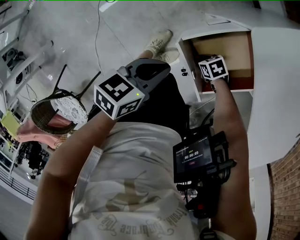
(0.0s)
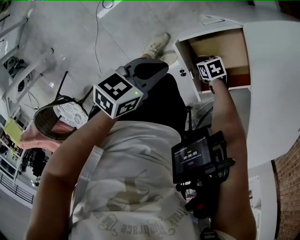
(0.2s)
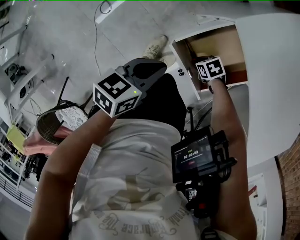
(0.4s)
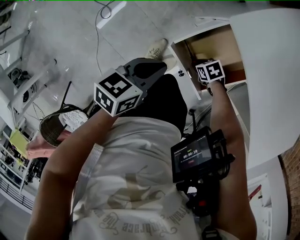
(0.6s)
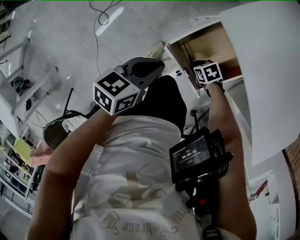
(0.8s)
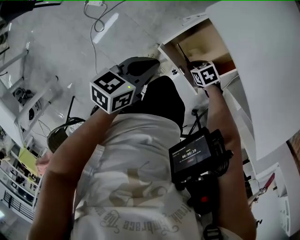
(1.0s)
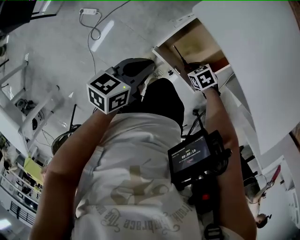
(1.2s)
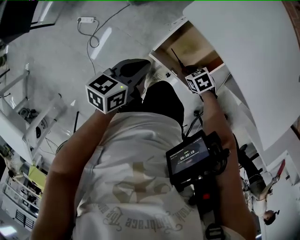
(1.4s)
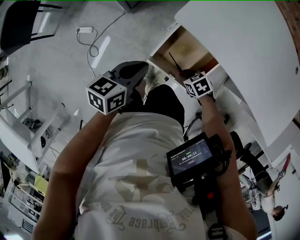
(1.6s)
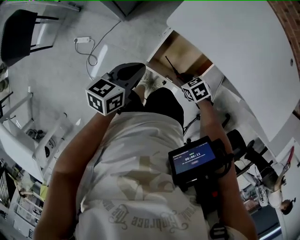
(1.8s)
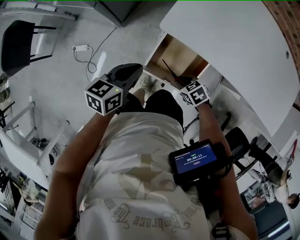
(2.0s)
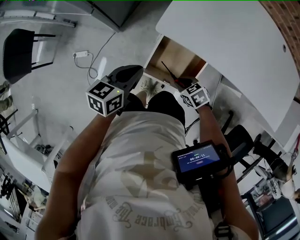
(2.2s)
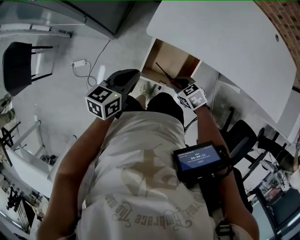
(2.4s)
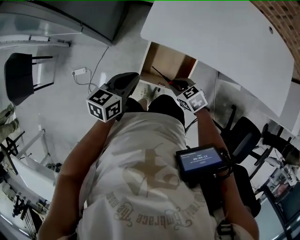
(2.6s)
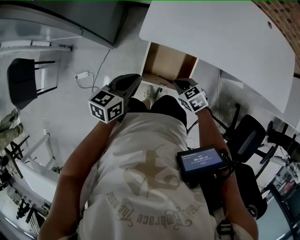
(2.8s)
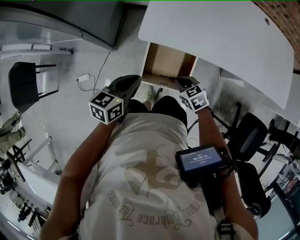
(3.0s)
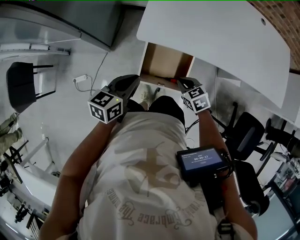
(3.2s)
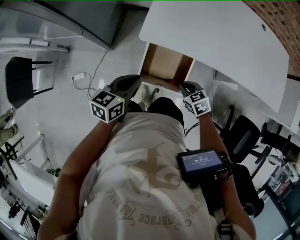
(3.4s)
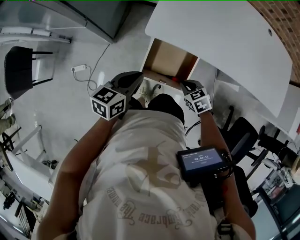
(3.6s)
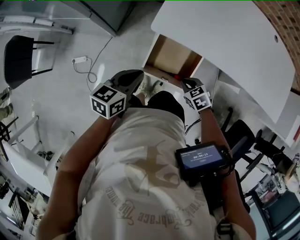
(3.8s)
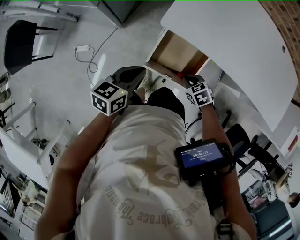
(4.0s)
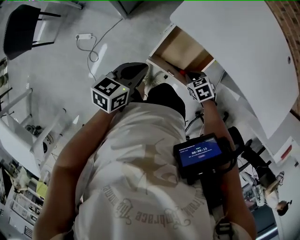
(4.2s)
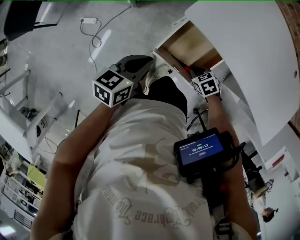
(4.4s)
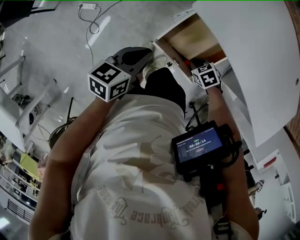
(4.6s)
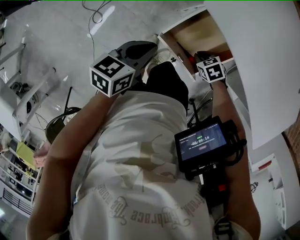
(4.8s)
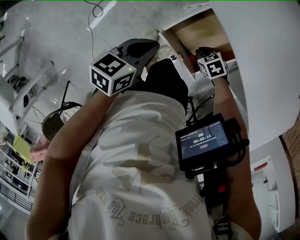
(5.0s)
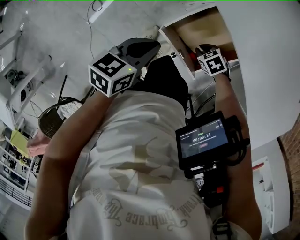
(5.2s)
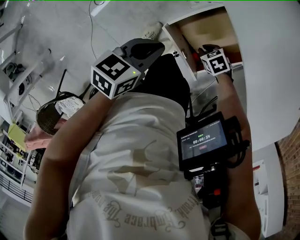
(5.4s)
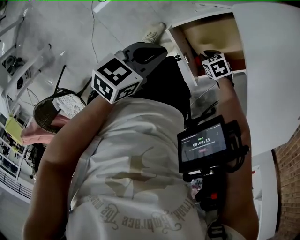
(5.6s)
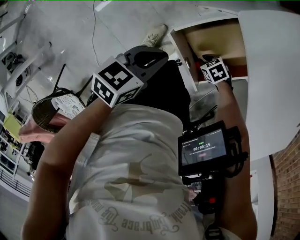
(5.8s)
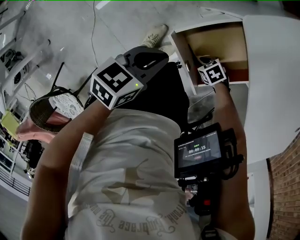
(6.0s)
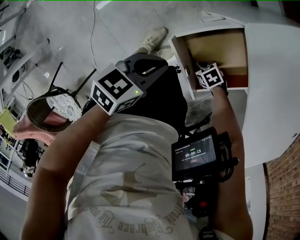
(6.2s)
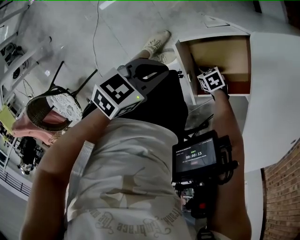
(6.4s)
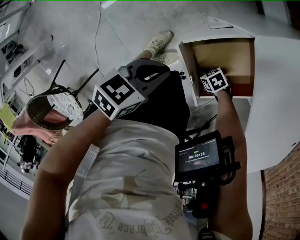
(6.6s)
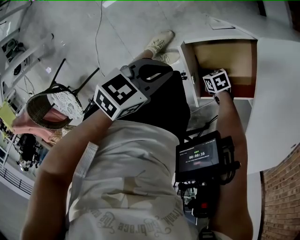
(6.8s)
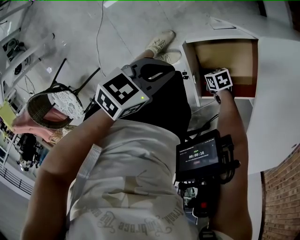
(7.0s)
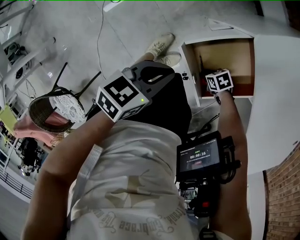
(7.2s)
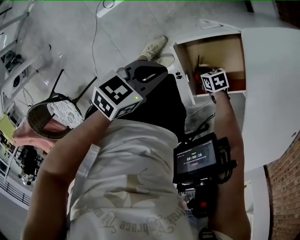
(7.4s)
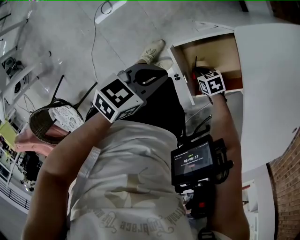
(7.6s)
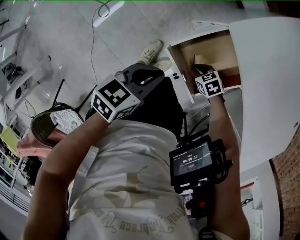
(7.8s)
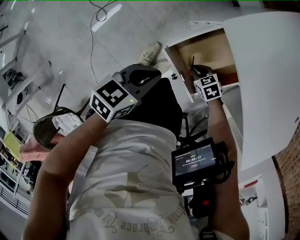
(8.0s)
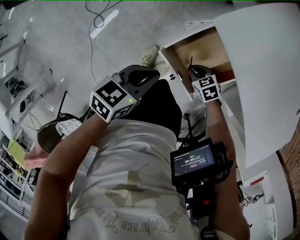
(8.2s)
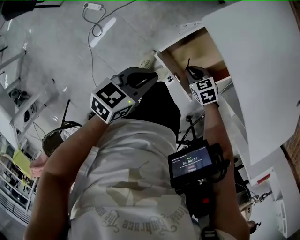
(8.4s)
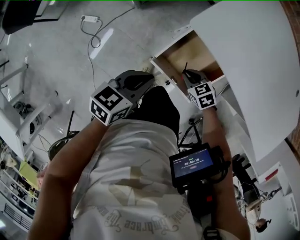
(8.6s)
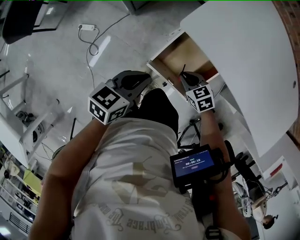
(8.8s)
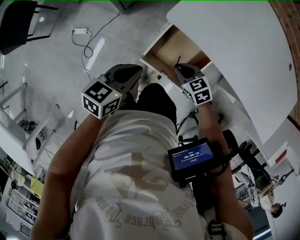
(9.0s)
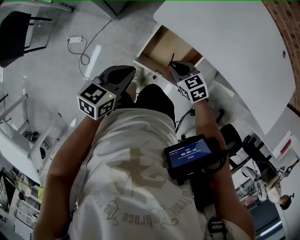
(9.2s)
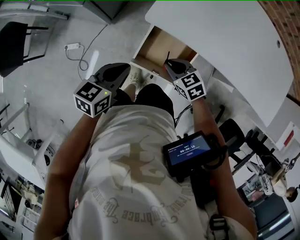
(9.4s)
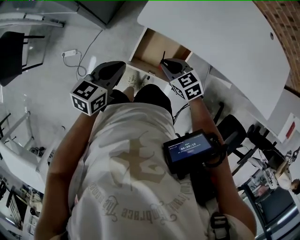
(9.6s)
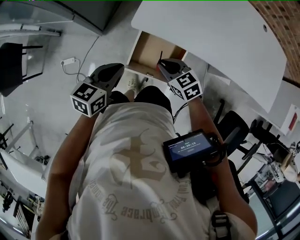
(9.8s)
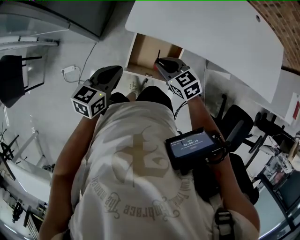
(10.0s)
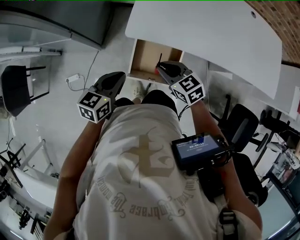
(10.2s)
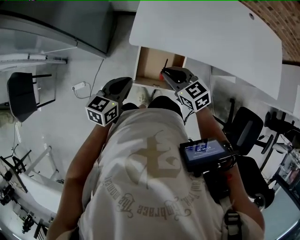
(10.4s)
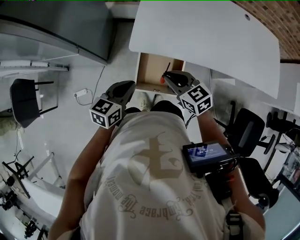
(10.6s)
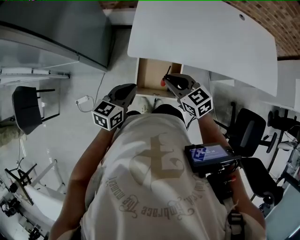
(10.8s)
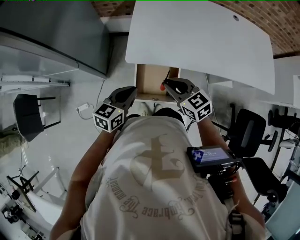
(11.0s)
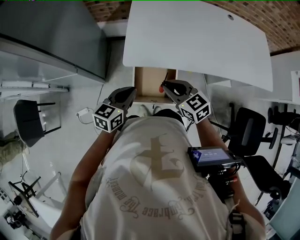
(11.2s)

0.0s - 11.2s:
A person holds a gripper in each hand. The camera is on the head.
0.0s - 1.6s: The left gripper heads upward, covering about 5 cm; the right gripper heads upward, covering roughly 15 cm, and rotates some 30 degrees.
1.6s - 3.2s: The right gripper heads upward, covering approximately 10 cm, and changes its angle by approximately 30 degrees; the left gripper is displaced upward by some 5 cm.
3.2s - 4.8s: The left gripper changes place by roughly 10 cm, and turns by roughly 20 degrees. The right gripper travels downward by approximately 10 cm, and turns by some 40 degrees.
4.8s - 6.4s: The right gripper goes some 20 cm downward, and turns by roughly 30 degrees. The left gripper travels downward by about 10 cm.
6.4s - 8.0s: The left gripper shifts about 10 cm upward. The right gripper travels upward by roughly 10 cm, and rotates roughly 30 degrees.
8.0s - 9.6s: The left gripper moves upward, roughly 10 cm; the right gripper shifts some 20 cm upward, and changes its angle by roughly 40 degrees.
9.6s - 11.2s: The left gripper shifts some 5 cm to the right, while the right gripper travels upward by roughly 15 cm, and turns by roughly 30 degrees.

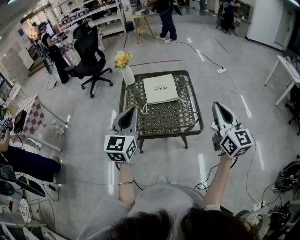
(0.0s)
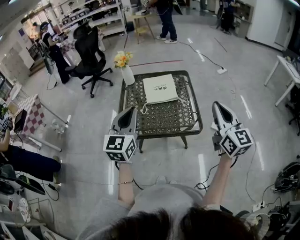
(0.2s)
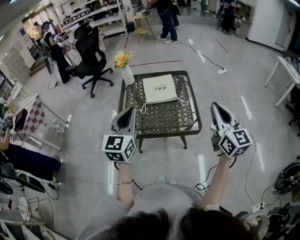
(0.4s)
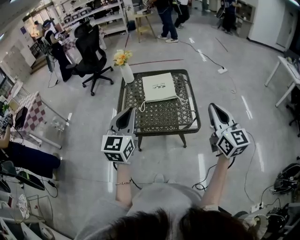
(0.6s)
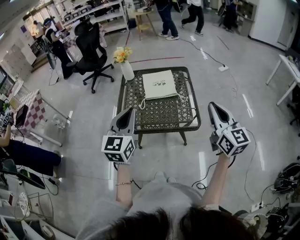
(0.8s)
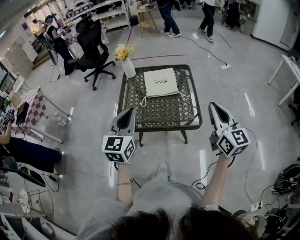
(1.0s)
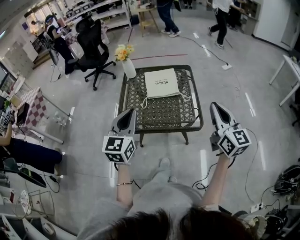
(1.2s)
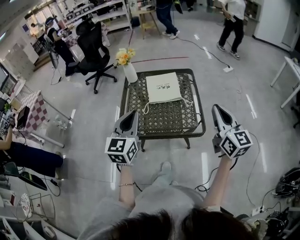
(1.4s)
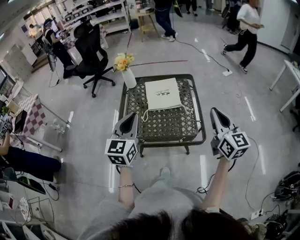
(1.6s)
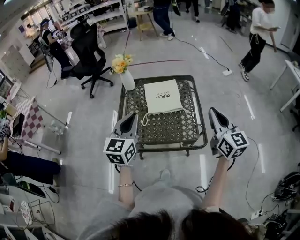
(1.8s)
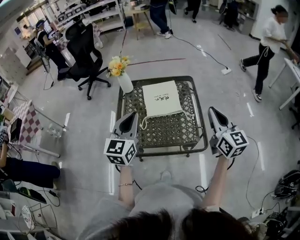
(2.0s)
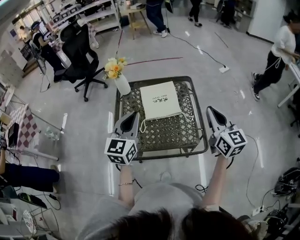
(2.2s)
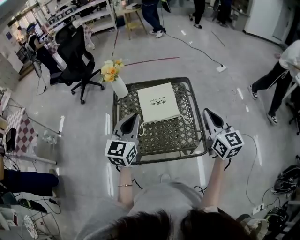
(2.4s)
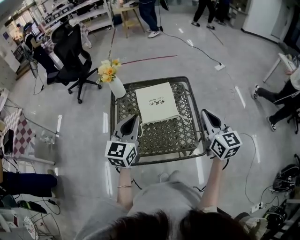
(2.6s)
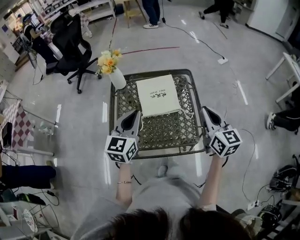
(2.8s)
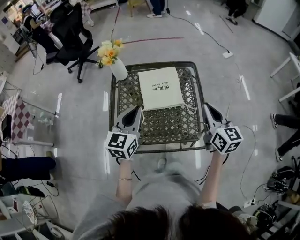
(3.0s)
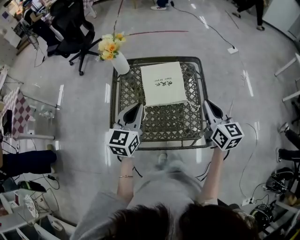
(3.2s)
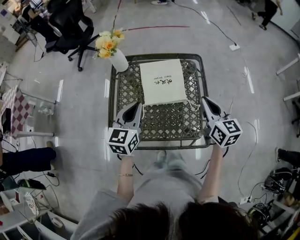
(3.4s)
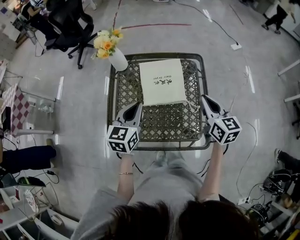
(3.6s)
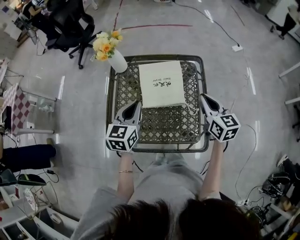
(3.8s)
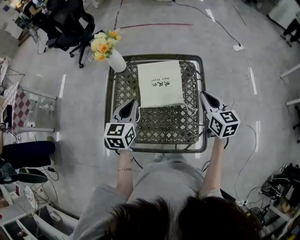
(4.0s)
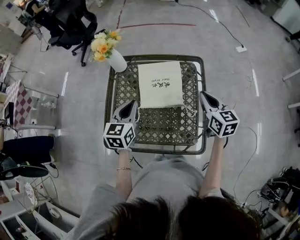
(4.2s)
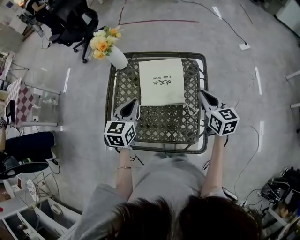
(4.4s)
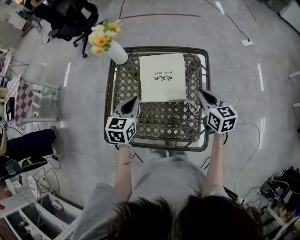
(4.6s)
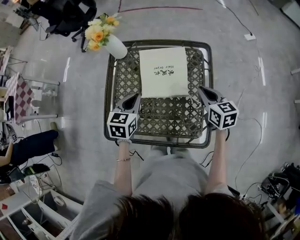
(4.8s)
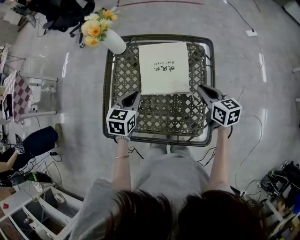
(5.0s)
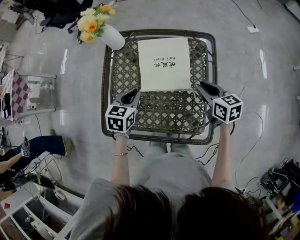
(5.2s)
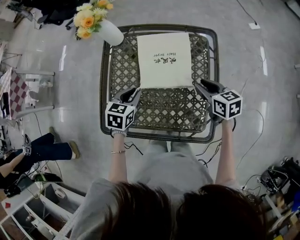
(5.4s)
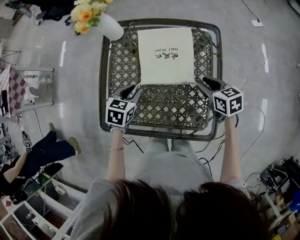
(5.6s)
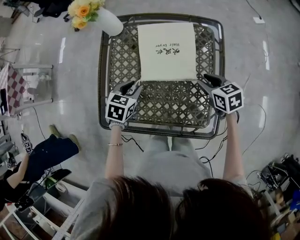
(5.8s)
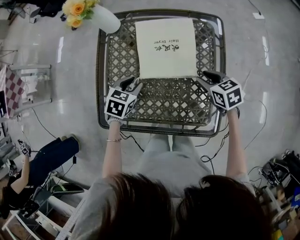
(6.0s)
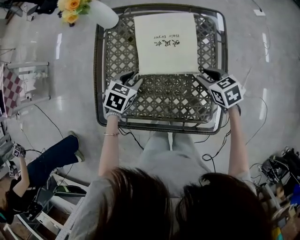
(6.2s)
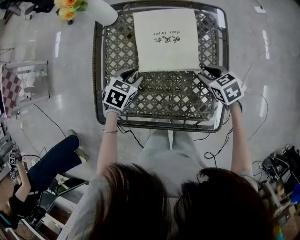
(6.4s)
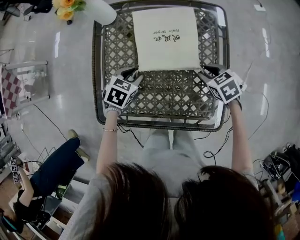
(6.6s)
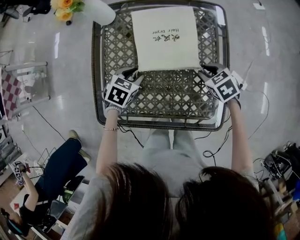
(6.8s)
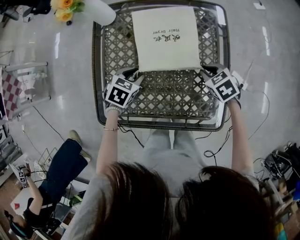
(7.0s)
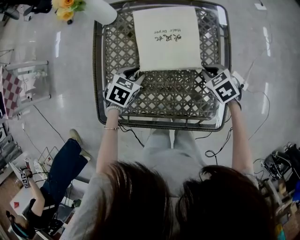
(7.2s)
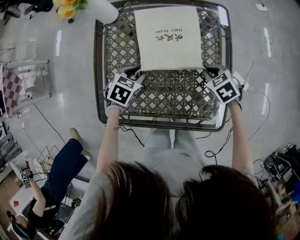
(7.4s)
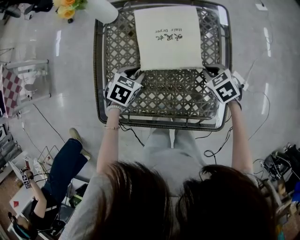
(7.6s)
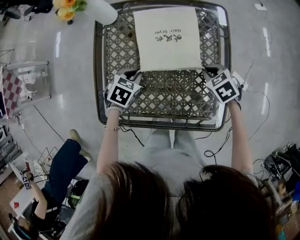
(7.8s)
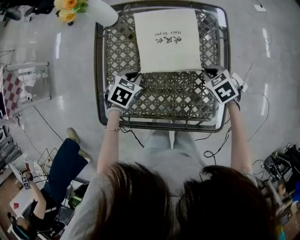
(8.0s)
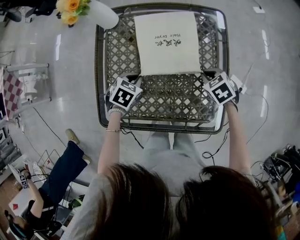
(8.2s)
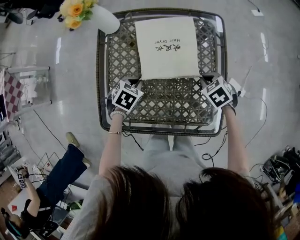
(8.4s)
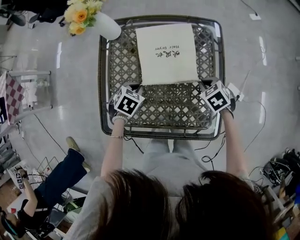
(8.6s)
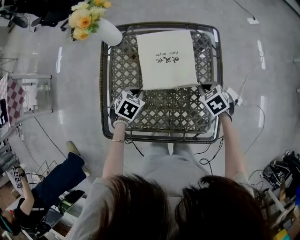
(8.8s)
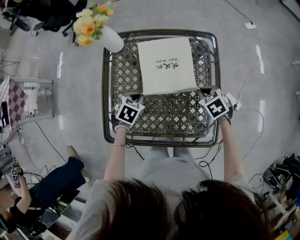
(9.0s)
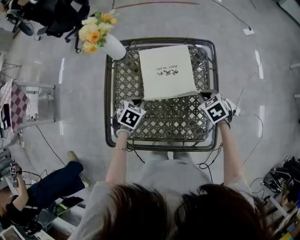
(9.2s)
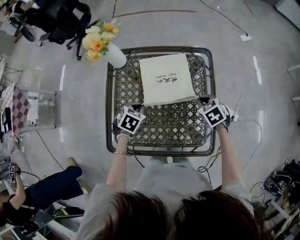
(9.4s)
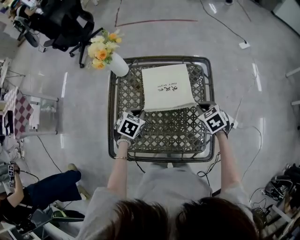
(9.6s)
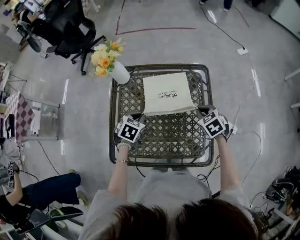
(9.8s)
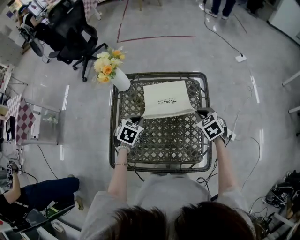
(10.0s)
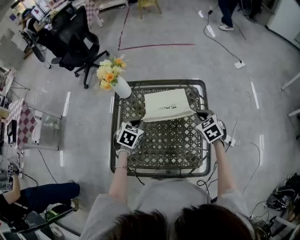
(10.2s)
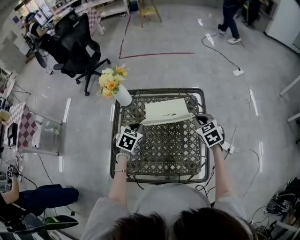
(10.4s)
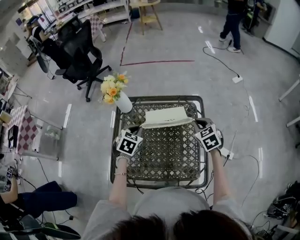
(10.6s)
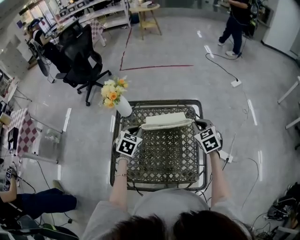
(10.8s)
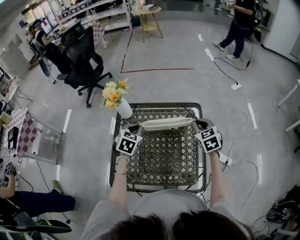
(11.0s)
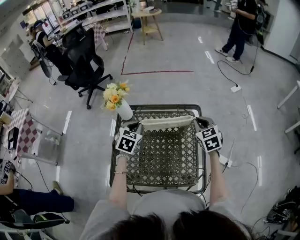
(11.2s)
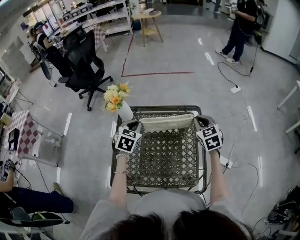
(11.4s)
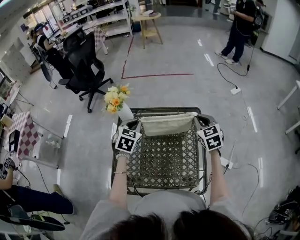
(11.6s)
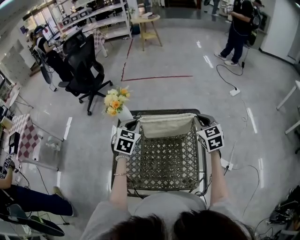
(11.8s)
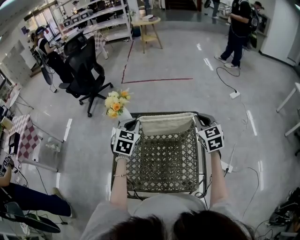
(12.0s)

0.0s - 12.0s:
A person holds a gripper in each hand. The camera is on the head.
0.0s - 1.6s: The two grippers go approximately 5 cm forward.
1.6s - 3.0s: The grippers both shift forward and downward by some 15 cm.
3.0s - 4.4s: The left gripper shifts about 10 cm downward and forward, while the right gripper shifts some 15 cm forward and downward.
4.4s - 6.0s: Both grippers move downward, about 20 cm. The right gripper turns by approximately 30 degrees, and opens up, while the left gripper swivels some 30 degrees, and opens up.
6.0s - 7.6s: The right gripper swivels about 20 degrees, and closes.
7.6s - 9.0s: There are only small adjustments of the grippers.
9.0s - 10.4s: The two grippers go approximately 15 cm upward and forward. The right gripper turns by some 20 degrees.
10.4s - 12.0s: The right gripper heads upward, covering some 15 cm, and swivels about 20 degrees. The left gripper travels upward and forward by about 15 cm, and swivels about 20 degrees.
